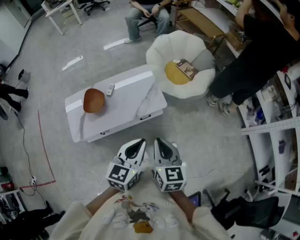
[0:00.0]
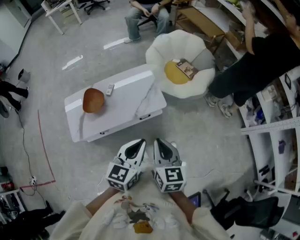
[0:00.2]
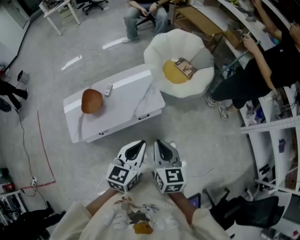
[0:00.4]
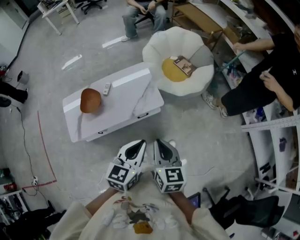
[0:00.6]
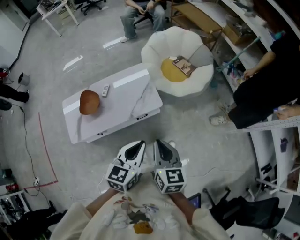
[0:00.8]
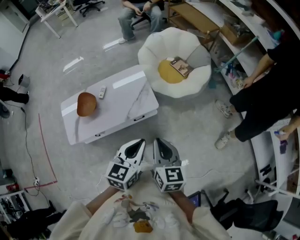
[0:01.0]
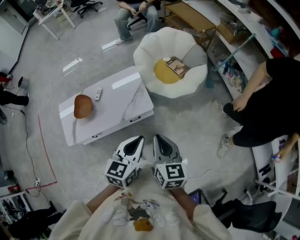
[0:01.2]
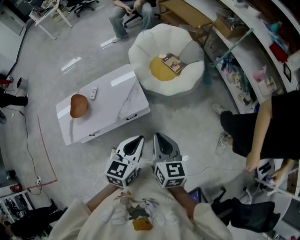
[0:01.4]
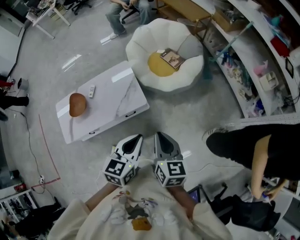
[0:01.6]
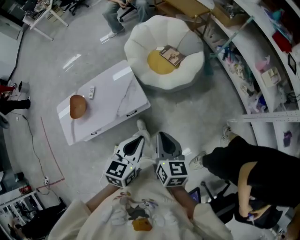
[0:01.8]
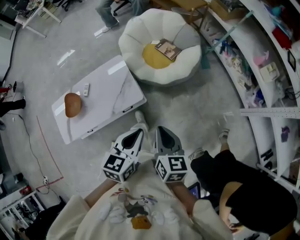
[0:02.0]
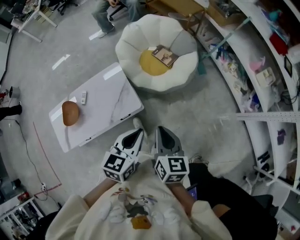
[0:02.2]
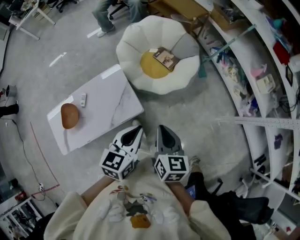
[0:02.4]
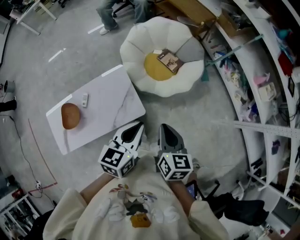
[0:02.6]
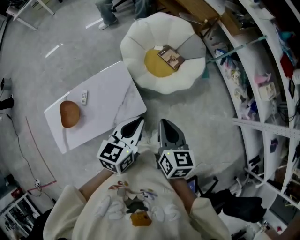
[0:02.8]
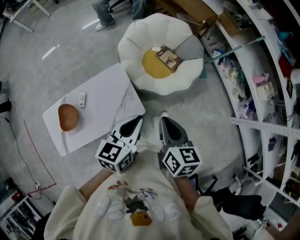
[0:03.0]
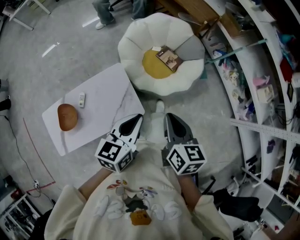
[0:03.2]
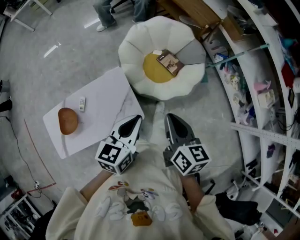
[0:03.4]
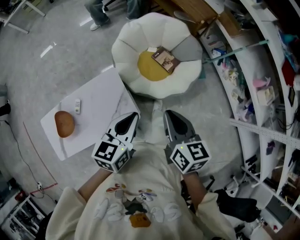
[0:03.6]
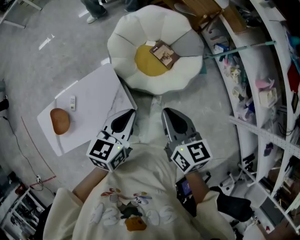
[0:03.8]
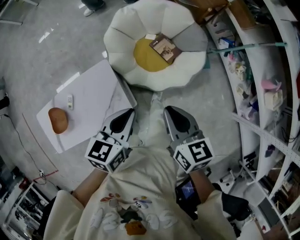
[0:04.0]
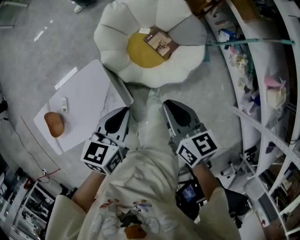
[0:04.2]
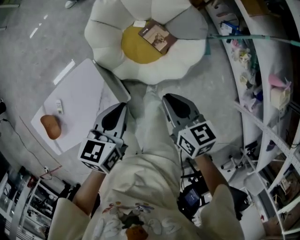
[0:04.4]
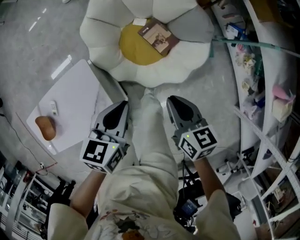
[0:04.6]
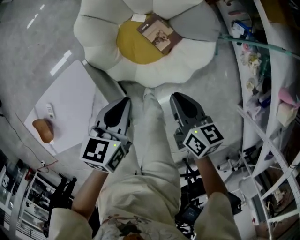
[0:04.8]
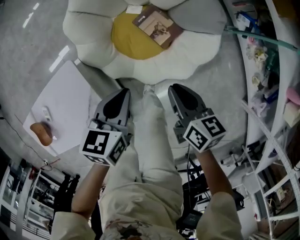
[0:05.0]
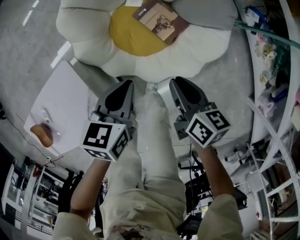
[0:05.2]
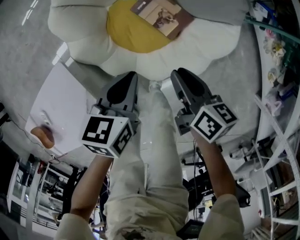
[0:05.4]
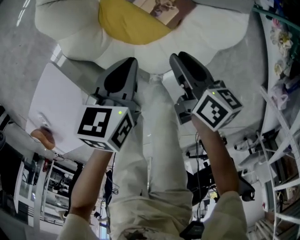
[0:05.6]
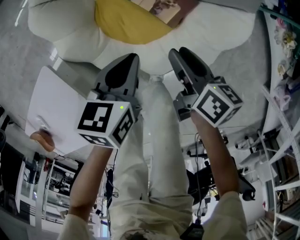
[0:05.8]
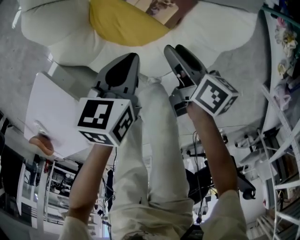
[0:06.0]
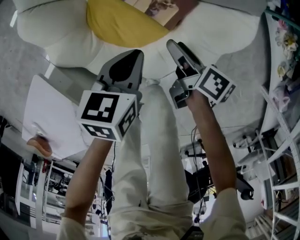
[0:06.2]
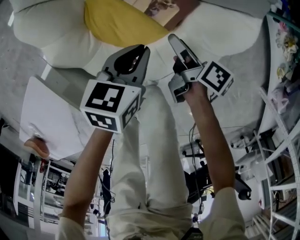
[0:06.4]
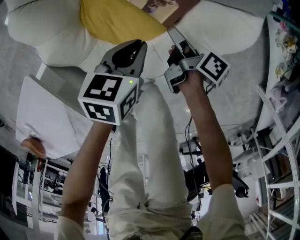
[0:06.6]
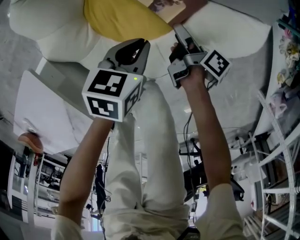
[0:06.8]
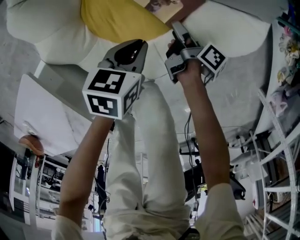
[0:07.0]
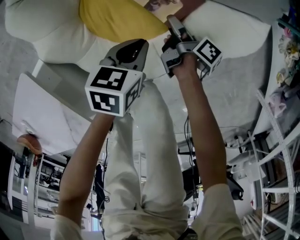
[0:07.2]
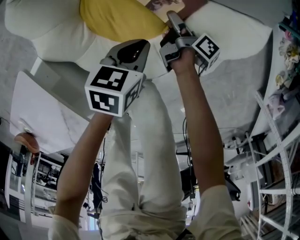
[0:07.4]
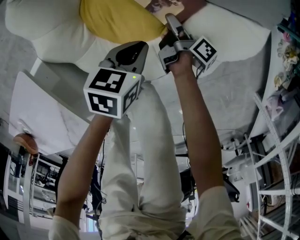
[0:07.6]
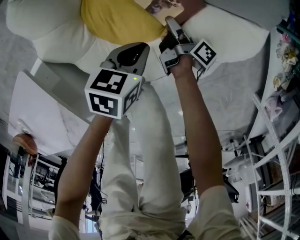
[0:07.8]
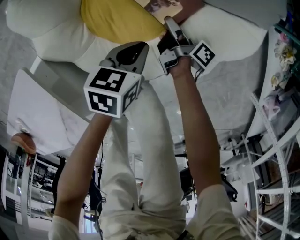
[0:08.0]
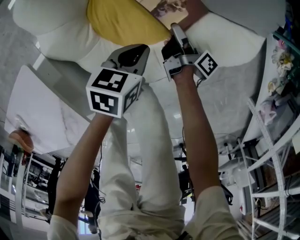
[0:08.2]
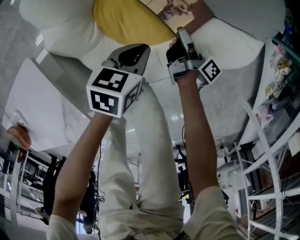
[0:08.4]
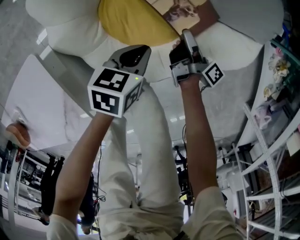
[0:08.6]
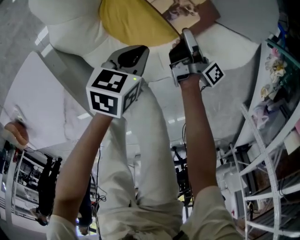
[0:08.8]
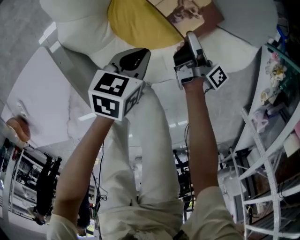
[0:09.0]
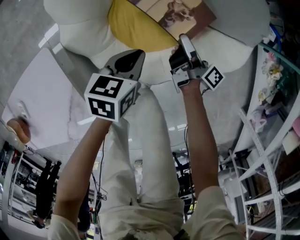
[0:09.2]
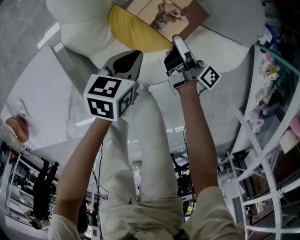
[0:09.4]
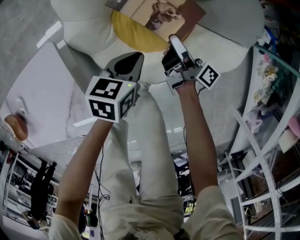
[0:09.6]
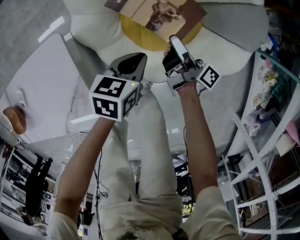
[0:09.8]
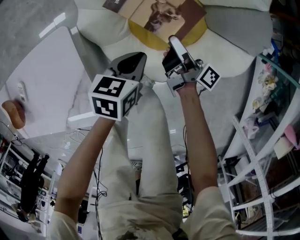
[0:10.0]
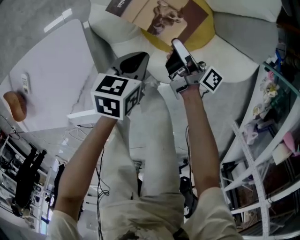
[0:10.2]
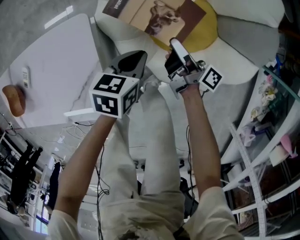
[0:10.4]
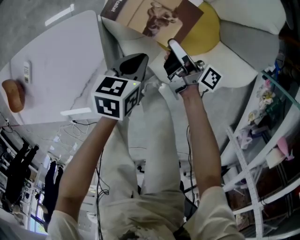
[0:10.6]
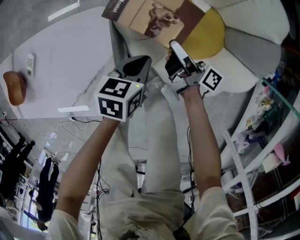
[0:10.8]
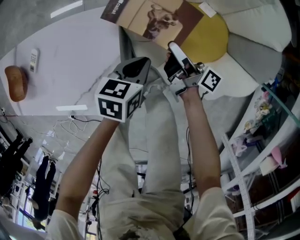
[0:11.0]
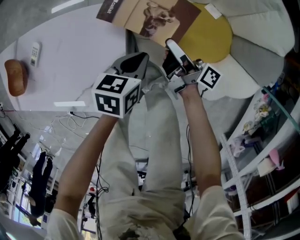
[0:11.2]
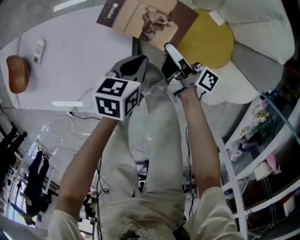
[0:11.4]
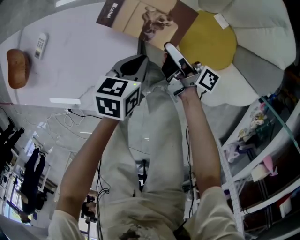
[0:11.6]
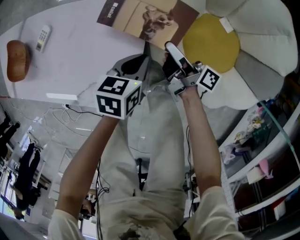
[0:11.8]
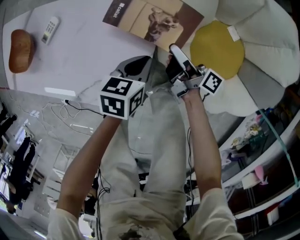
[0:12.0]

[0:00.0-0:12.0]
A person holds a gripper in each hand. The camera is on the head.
0:00.0 to 0:01.6: Both grippers travel together to the right and forward, some 25 cm.
0:01.6 to 0:03.0: Both grippers move forward and to the left, roughly 25 cm.
0:03.0 to 0:04.4: The left gripper shifts approximately 35 cm forward and downward, while the right gripper heads forward, downward and to the right, covering roughly 40 cm.
0:04.4 to 0:06.0: Both grippers travel together downward, some 40 cm. The right gripper rotates around the line of its fingers by about 40 degrees, clockwise from behind, and opens up.
0:06.0 to 0:07.6: The left gripper goes roughly 10 cm downward. The right gripper heads downward, covering roughly 20 cm, and turns by some 30 degrees.
0:07.6 to 0:09.0: The right gripper goes roughly 15 cm upward, rotates roughly 20 degrees, and closes up; the left gripper is displaced upward by some 5 cm.
0:09.0 to 0:10.4: The left gripper travels to the left, upward and backward by approximately 15 cm. Meanwhile the right gripper goes some 20 cm to the left and upward, and rotates roughly 30 degrees.
0:10.4 to 0:12.0: The grippers both shift to the left by about 20 cm. The right gripper changes its angle by about 20 degrees. Meanwhile the left gripper swivels roughly 20 degrees.

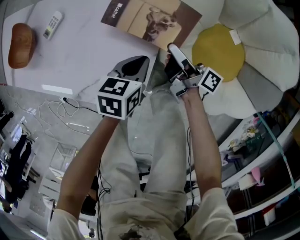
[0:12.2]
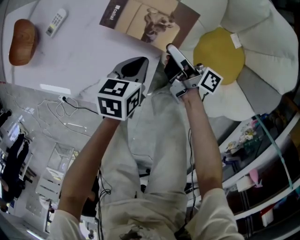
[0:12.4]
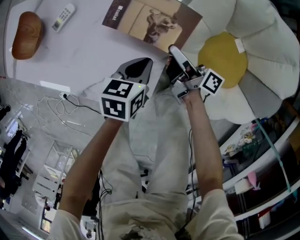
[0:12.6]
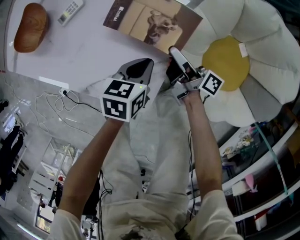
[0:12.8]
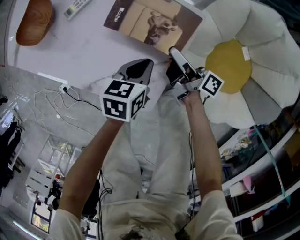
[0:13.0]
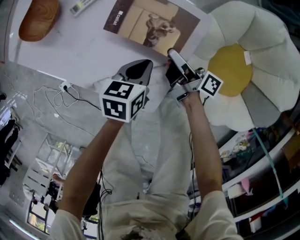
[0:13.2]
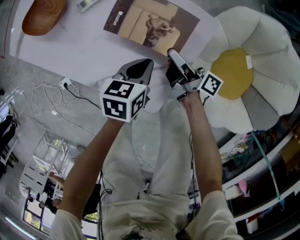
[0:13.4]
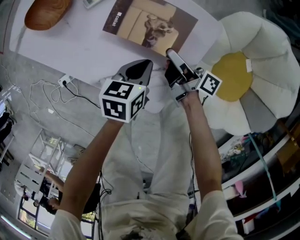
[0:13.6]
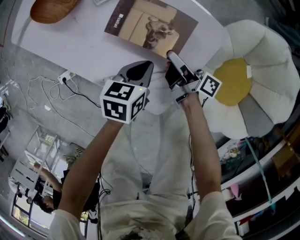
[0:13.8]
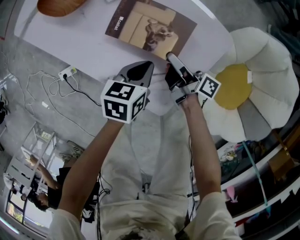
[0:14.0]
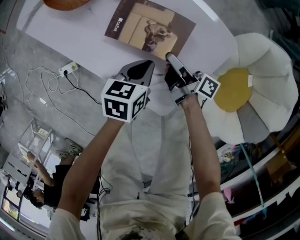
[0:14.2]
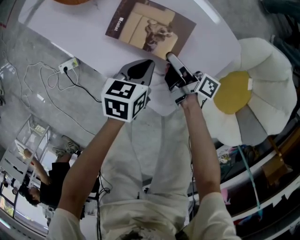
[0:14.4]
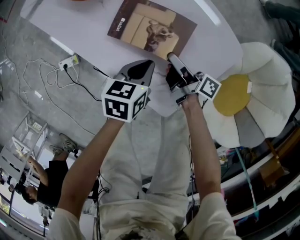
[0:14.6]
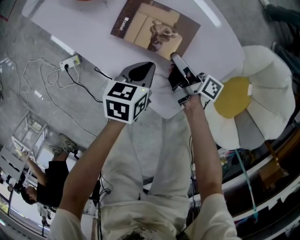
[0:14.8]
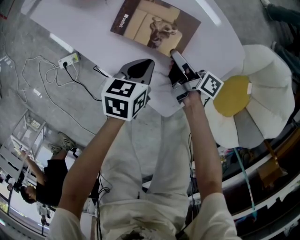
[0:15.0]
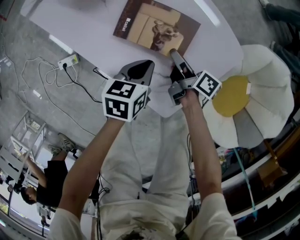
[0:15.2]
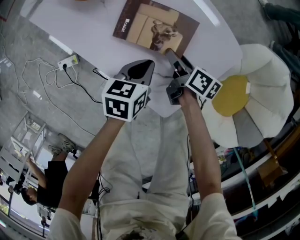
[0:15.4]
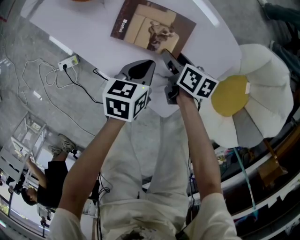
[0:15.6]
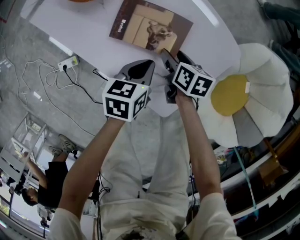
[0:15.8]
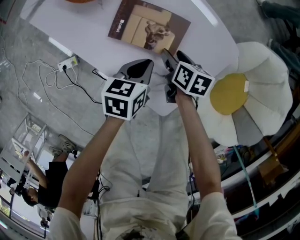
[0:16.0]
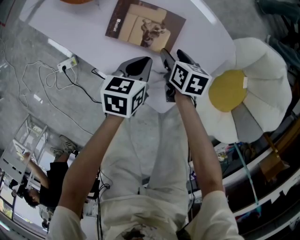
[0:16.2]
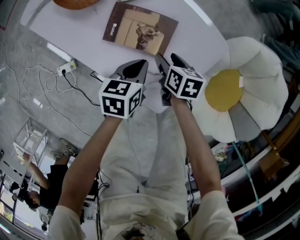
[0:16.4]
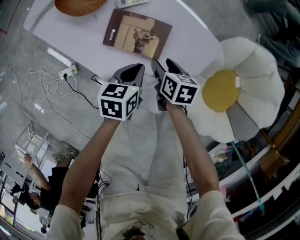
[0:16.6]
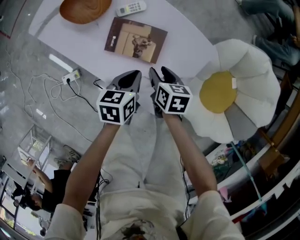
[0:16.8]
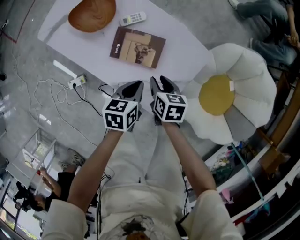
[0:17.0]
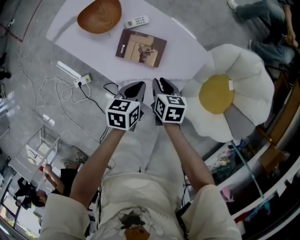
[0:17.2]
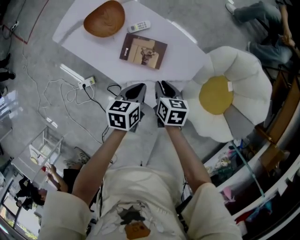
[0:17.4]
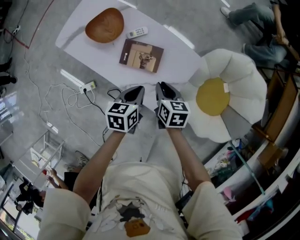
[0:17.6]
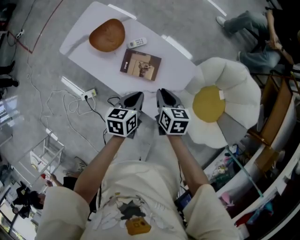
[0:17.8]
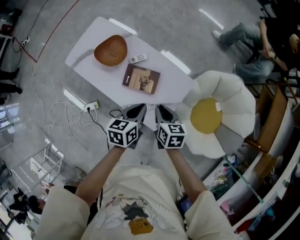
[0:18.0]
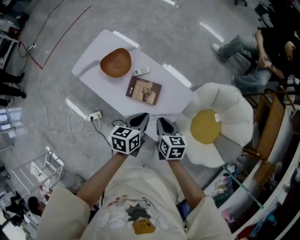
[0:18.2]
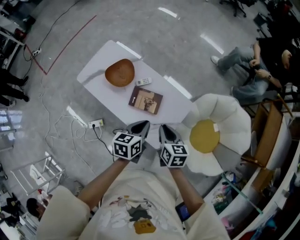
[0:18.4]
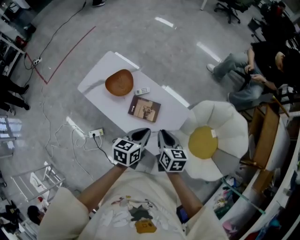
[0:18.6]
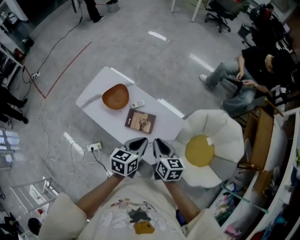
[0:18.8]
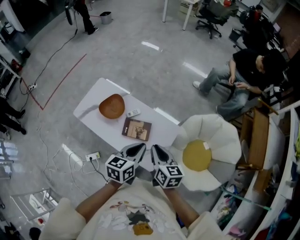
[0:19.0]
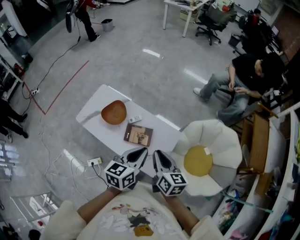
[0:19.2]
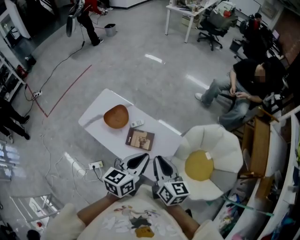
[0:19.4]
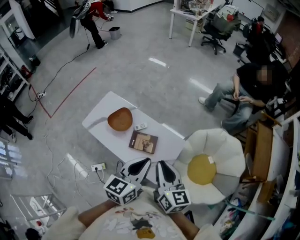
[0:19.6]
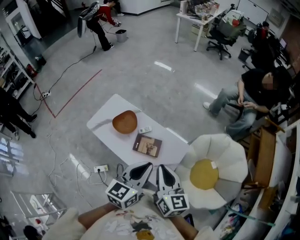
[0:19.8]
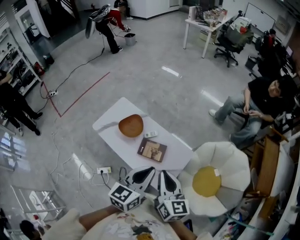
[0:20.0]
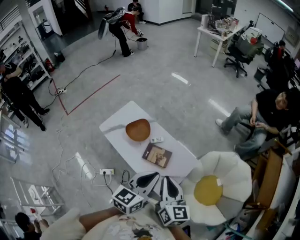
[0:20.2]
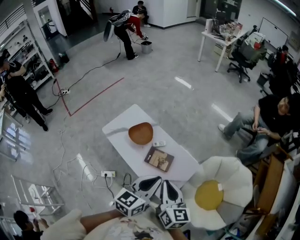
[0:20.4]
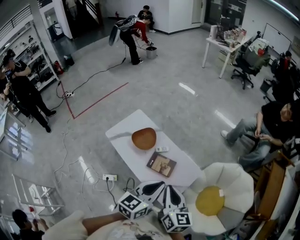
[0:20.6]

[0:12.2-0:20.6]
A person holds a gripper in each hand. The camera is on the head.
0:12.2 to 0:13.6: Both grippers move to the left, approximately 15 cm.
0:13.6 to 0:15.0: Both grippers travel together to the left, some 10 cm.
0:15.0 to 0:16.4: The right gripper tilts its fingers approximately 40 degrees downward, and opens.
0:16.4 to 0:17.8: The two grippers go approximately 25 cm upward. The right gripper closes up.
0:17.8 to 0:19.2: Both grippers travel together upward, approximately 25 cm. The left gripper changes its angle by about 30 degrees. The right gripper rotates approximately 20 degrees.
0:19.2 to 0:20.6: The two grippers go some 5 cm upward.

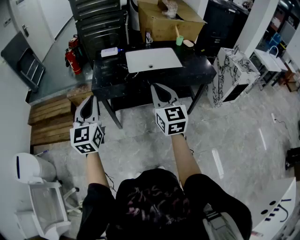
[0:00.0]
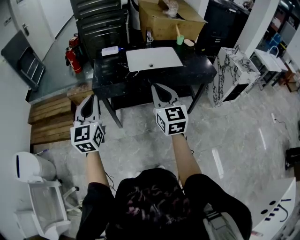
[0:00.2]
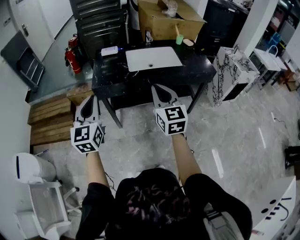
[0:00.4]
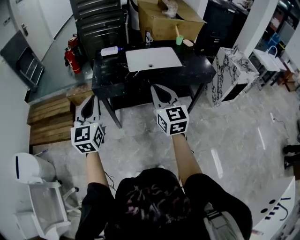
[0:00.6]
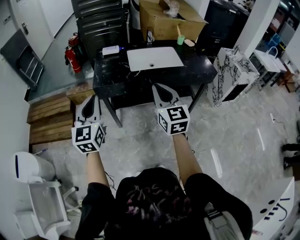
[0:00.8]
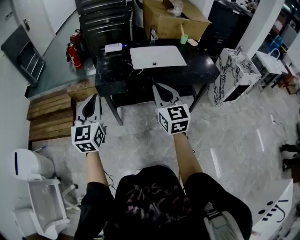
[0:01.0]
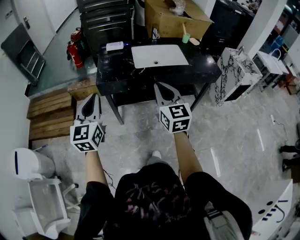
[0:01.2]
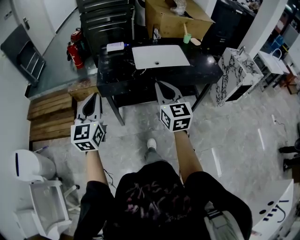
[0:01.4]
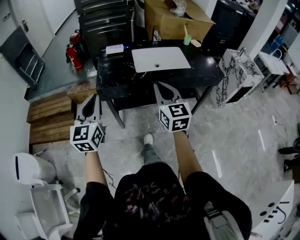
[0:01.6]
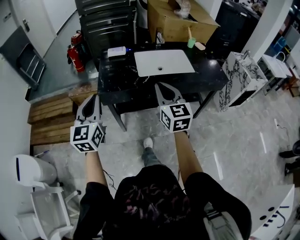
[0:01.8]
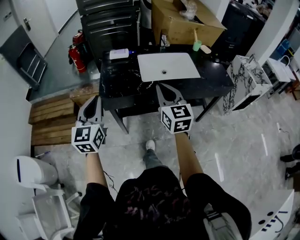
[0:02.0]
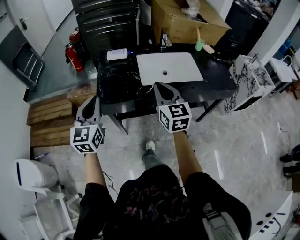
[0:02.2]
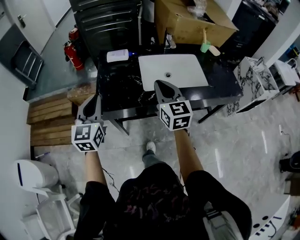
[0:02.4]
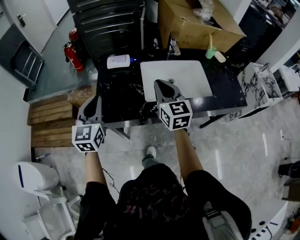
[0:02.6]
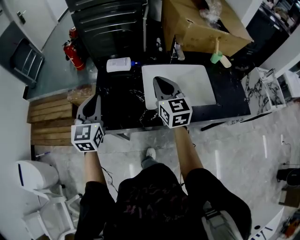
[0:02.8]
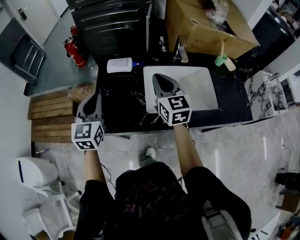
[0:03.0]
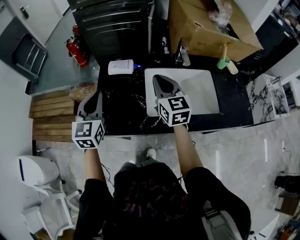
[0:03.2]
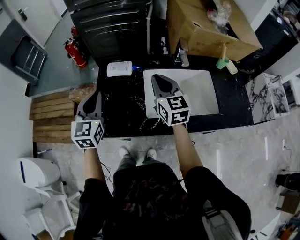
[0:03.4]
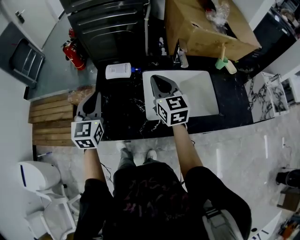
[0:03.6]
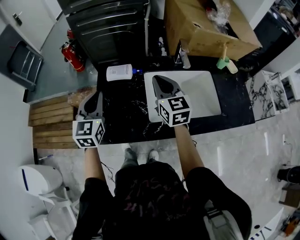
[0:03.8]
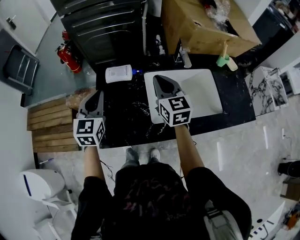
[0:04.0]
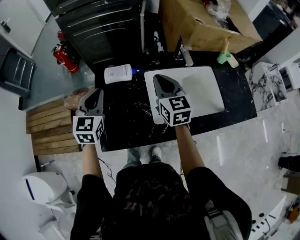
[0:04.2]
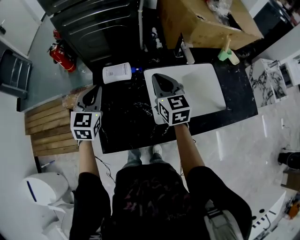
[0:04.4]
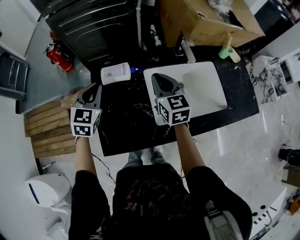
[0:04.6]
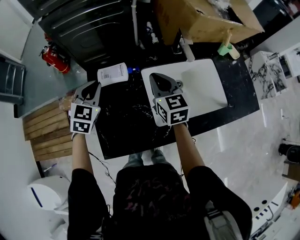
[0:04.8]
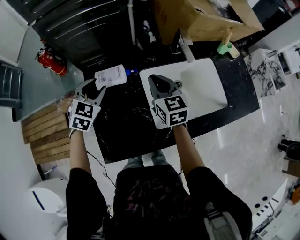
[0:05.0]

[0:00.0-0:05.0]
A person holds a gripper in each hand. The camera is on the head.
0:00.0 to 0:01.6: Both grippers move forward, some 5 cm.
0:01.6 to 0:03.4: The two grippers travel together, forward, approximately 40 cm.
0:03.4 to 0:05.0: The right gripper moves forward and downward, about 15 cm; the left gripper shifts approximately 20 cm forward and downward, changes its angle by some 40 degrees, and opens.
